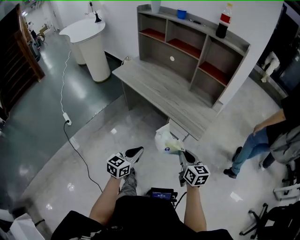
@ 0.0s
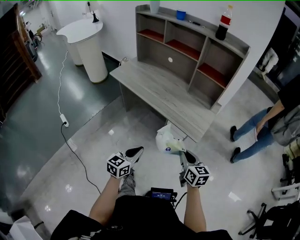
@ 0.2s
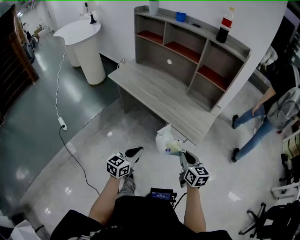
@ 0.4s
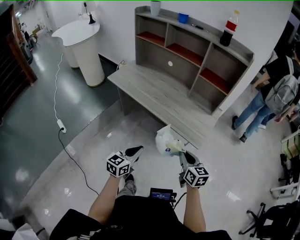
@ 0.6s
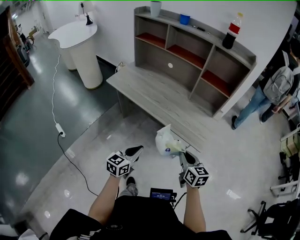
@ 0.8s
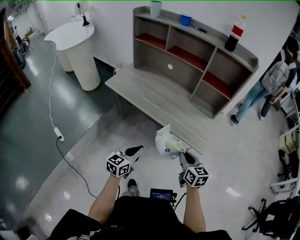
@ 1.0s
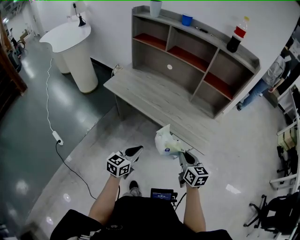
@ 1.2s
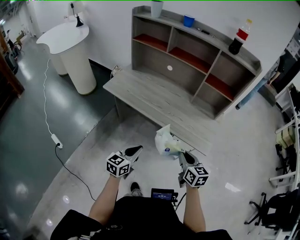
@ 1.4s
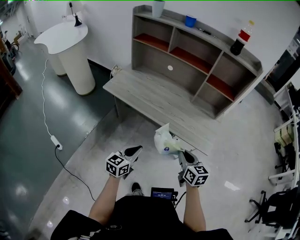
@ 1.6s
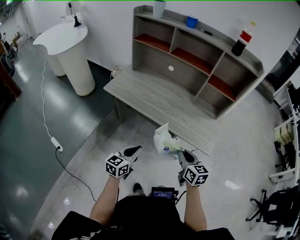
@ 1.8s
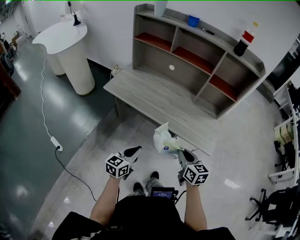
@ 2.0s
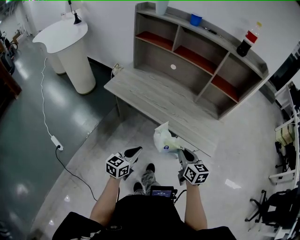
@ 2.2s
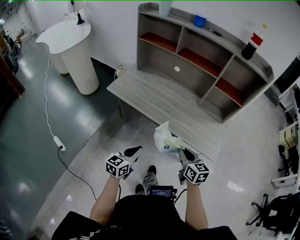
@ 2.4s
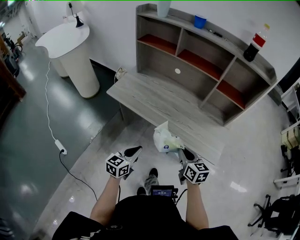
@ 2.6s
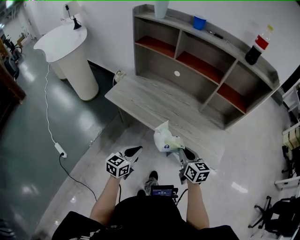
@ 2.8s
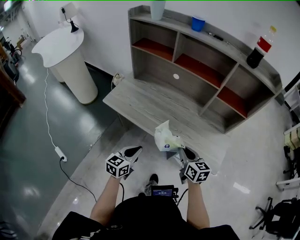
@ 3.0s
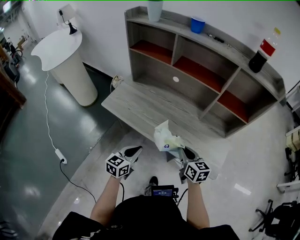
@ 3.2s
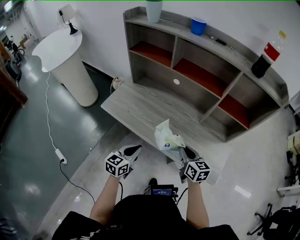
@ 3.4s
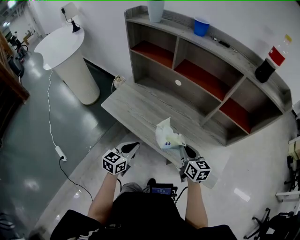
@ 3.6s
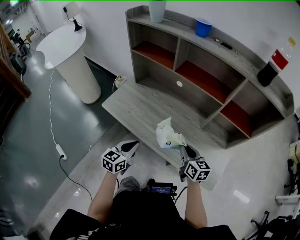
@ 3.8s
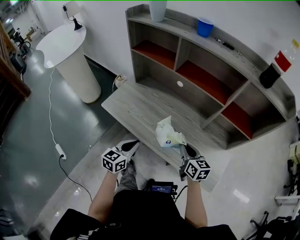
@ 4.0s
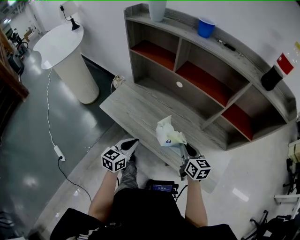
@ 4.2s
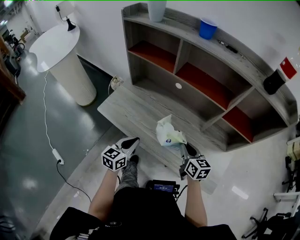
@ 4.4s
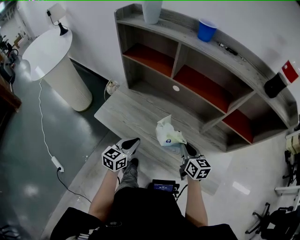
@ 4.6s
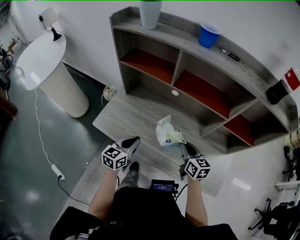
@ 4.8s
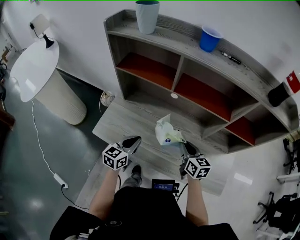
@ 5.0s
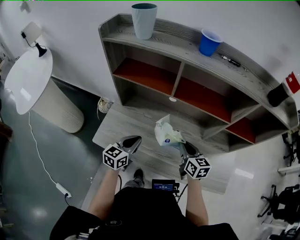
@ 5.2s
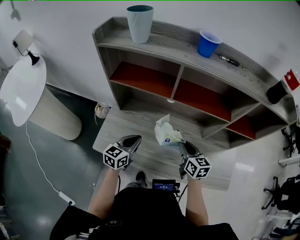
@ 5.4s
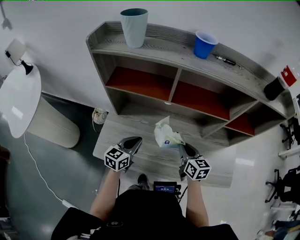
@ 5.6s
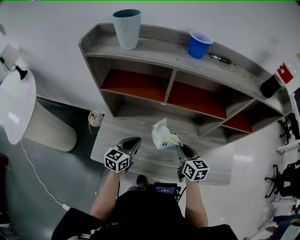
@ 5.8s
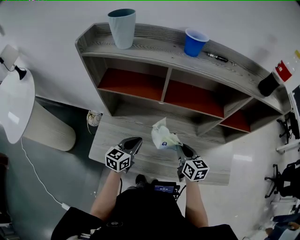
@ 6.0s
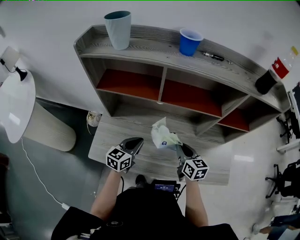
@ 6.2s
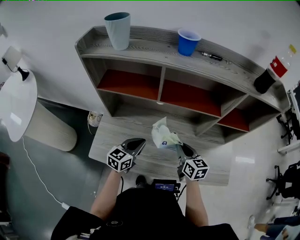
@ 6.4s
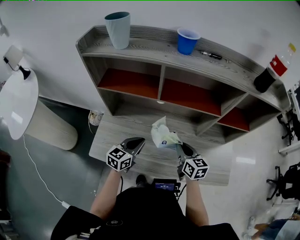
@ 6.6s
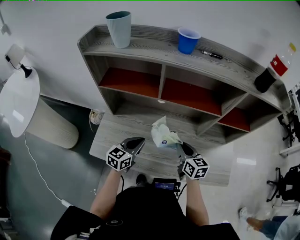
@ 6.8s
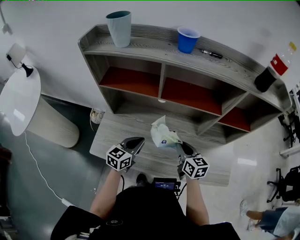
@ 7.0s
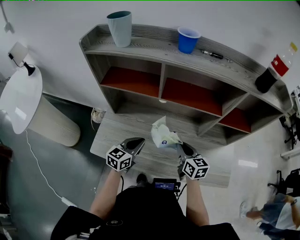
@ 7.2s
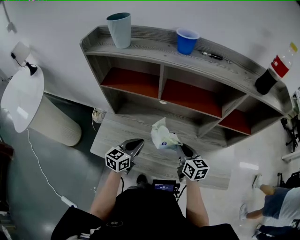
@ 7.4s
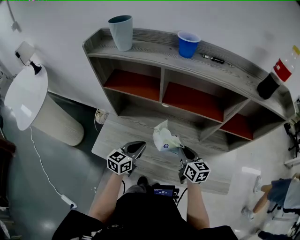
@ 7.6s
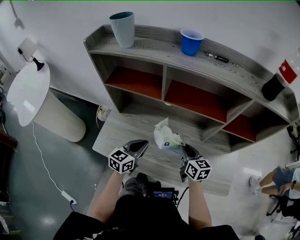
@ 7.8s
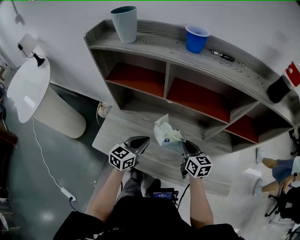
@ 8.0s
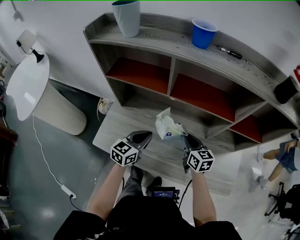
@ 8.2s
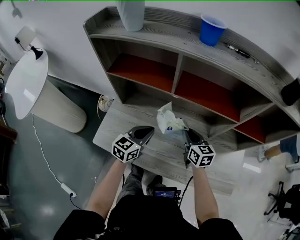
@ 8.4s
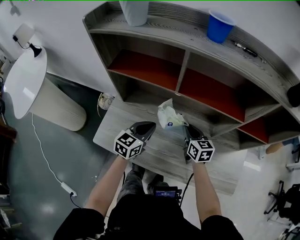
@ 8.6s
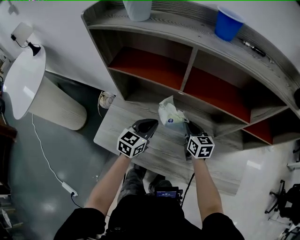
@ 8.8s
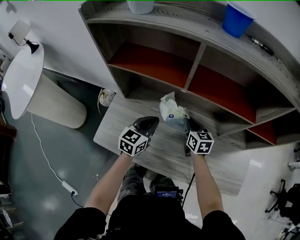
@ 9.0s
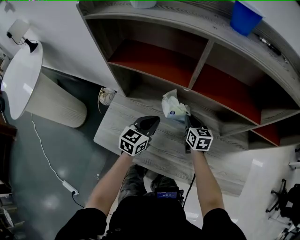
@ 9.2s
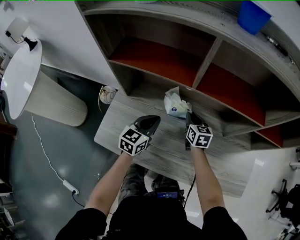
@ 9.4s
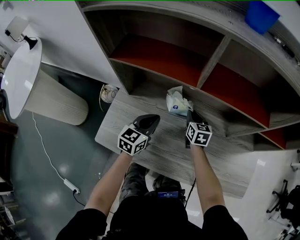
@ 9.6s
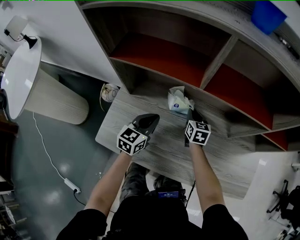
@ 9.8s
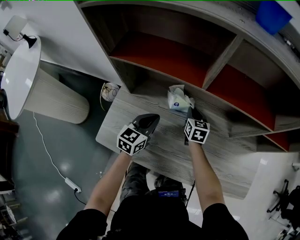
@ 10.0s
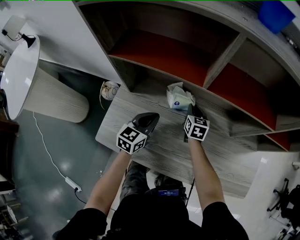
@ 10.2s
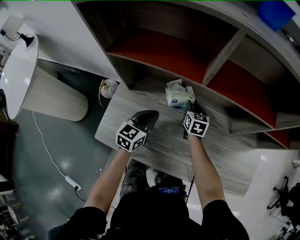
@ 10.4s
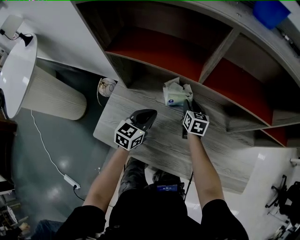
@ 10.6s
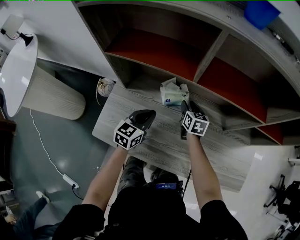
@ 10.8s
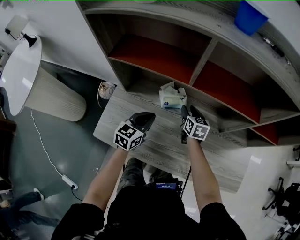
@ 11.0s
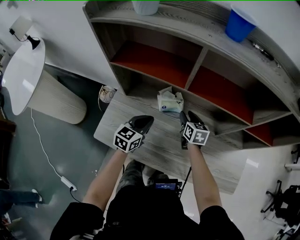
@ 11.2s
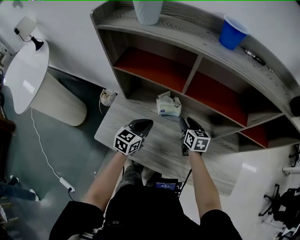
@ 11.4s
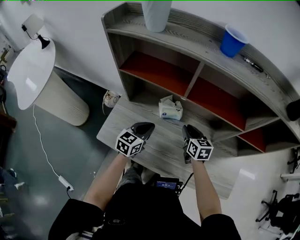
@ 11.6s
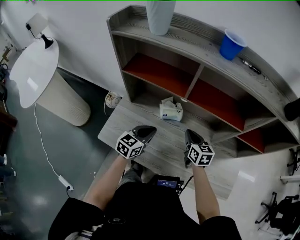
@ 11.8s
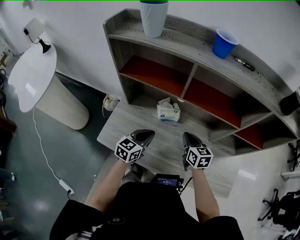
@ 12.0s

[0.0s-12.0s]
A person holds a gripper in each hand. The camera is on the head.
0.0s to 1.6s: The grippers both shift to the left and forward by some 20 cm.
1.6s to 3.0s: Both grippers move forward, some 15 cm.
3.0s to 4.4s: The grippers both shift forward by roughly 15 cm.
4.4s to 6.0s: The right gripper moves forward and to the left, approximately 10 cm, and rotates some 20 degrees. Meanwhile the left gripper travels forward by about 20 cm, and changes its angle by some 20 degrees.
6.0s to 7.6s: There are only small adjustments of the grippers.
7.6s to 9.0s: The left gripper goes approximately 10 cm forward and downward. Meanwhile the right gripper shifts approximately 15 cm forward, downward and to the left.
9.0s to 10.4s: The left gripper goes some 5 cm downward; the right gripper heads downward and forward, covering roughly 10 cm.
10.4s to 12.0s: The right gripper is displaced upward and backward by roughly 20 cm, and opens and closes again, while the left gripper goes approximately 10 cm upward and backward.

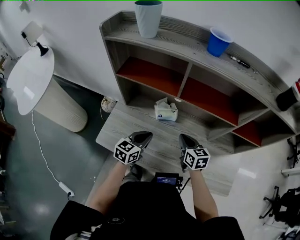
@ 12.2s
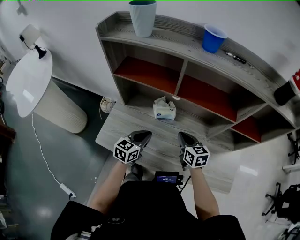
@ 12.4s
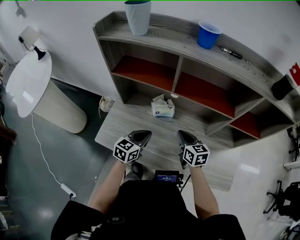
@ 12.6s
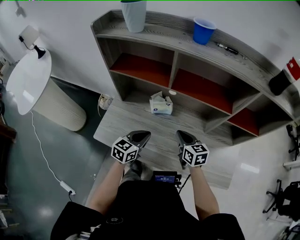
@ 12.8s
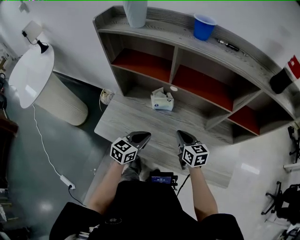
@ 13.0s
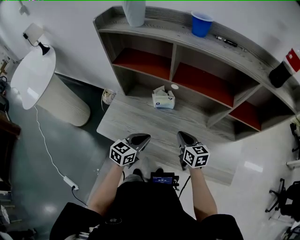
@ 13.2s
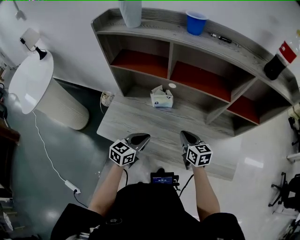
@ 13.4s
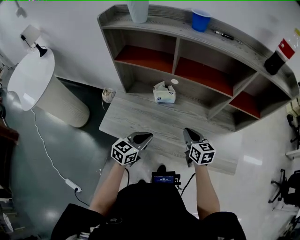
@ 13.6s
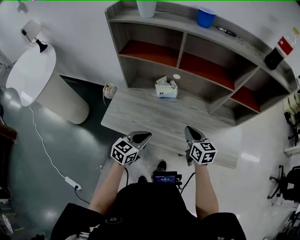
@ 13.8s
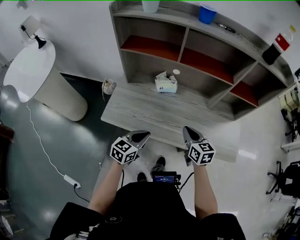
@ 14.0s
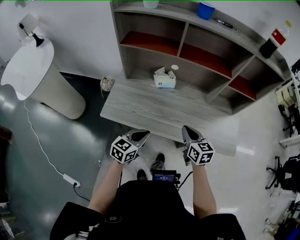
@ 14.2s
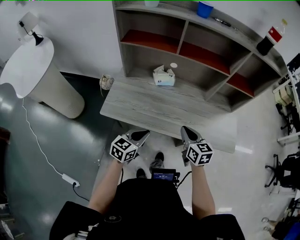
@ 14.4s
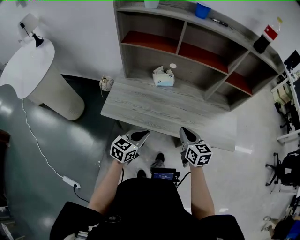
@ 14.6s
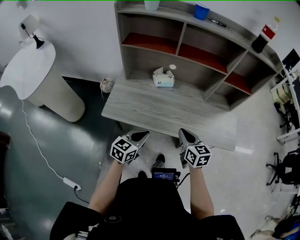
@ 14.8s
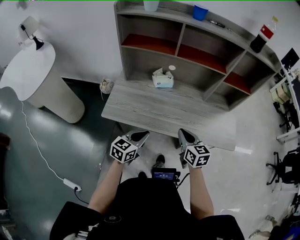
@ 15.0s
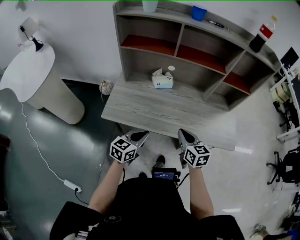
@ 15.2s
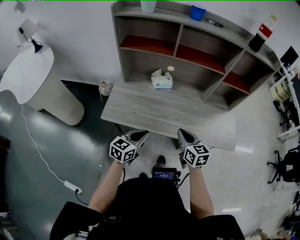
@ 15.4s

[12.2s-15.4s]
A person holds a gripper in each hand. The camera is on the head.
12.2s to 13.8s: Both grippers travel together backward, roughly 15 cm.
13.8s to 15.4s: The left gripper goes roughly 10 cm backward. The right gripper travels backward by roughly 10 cm.

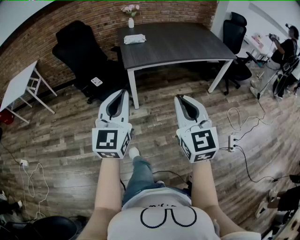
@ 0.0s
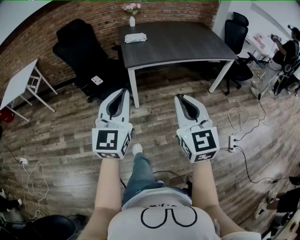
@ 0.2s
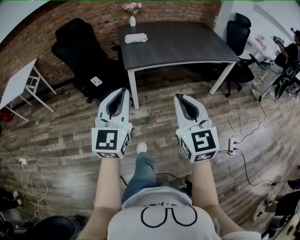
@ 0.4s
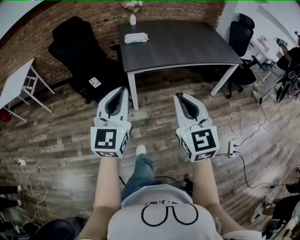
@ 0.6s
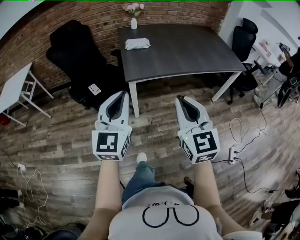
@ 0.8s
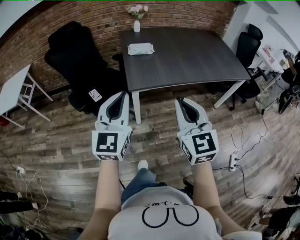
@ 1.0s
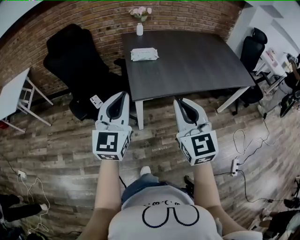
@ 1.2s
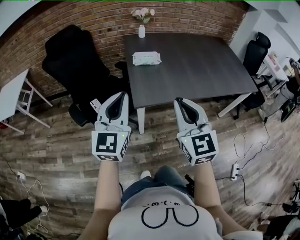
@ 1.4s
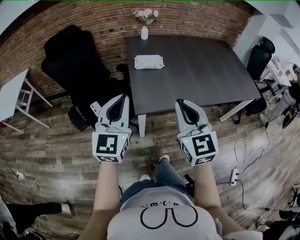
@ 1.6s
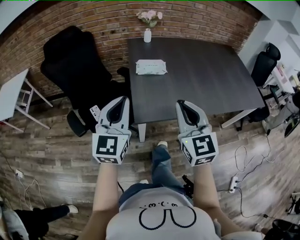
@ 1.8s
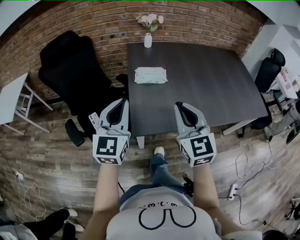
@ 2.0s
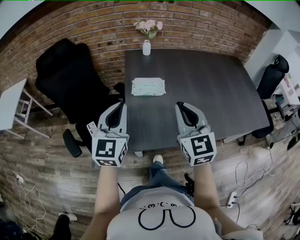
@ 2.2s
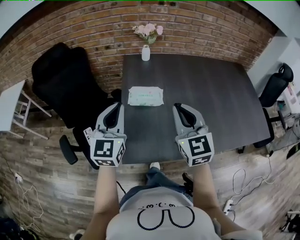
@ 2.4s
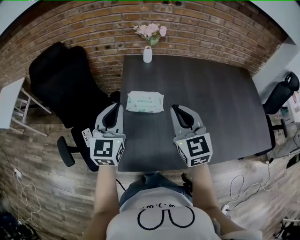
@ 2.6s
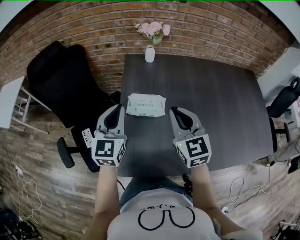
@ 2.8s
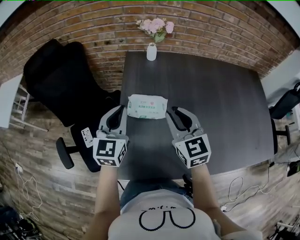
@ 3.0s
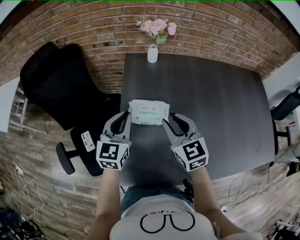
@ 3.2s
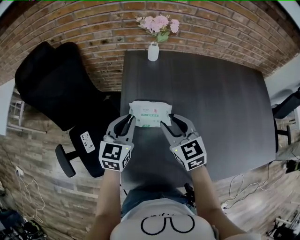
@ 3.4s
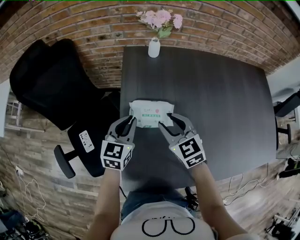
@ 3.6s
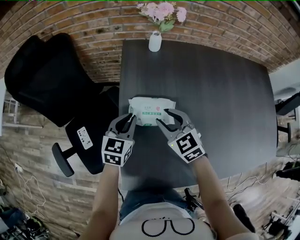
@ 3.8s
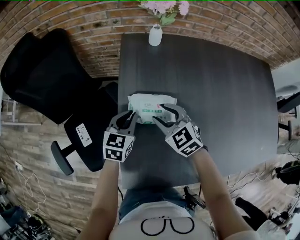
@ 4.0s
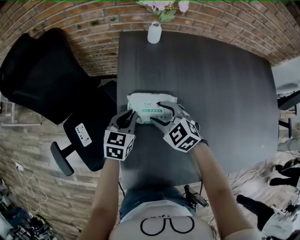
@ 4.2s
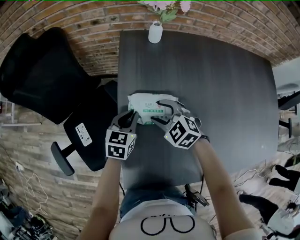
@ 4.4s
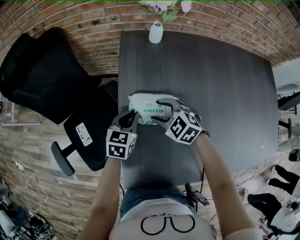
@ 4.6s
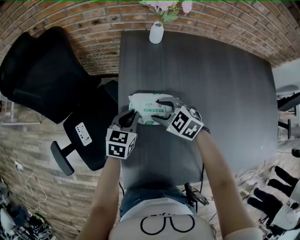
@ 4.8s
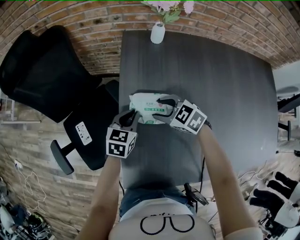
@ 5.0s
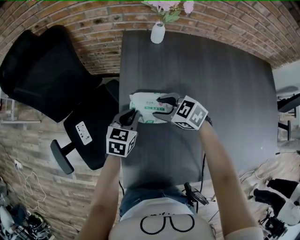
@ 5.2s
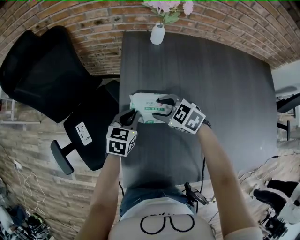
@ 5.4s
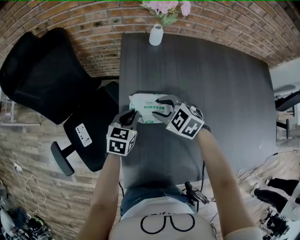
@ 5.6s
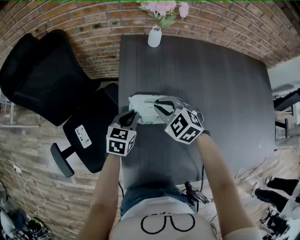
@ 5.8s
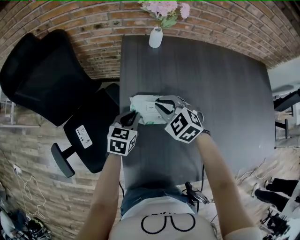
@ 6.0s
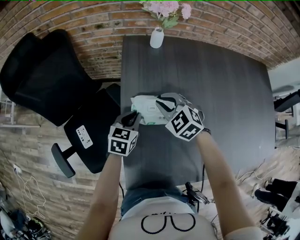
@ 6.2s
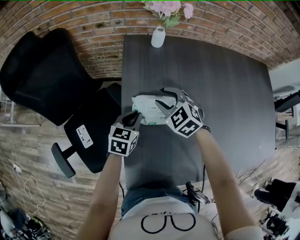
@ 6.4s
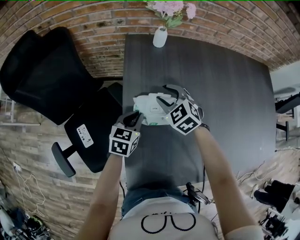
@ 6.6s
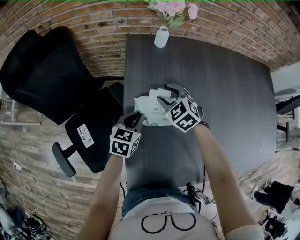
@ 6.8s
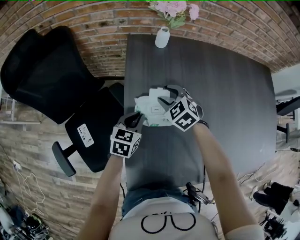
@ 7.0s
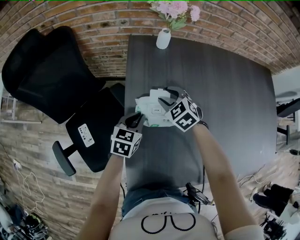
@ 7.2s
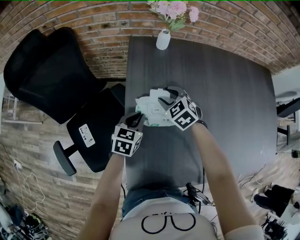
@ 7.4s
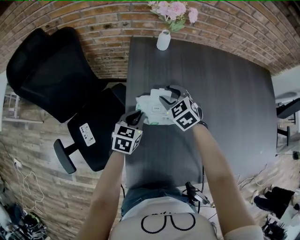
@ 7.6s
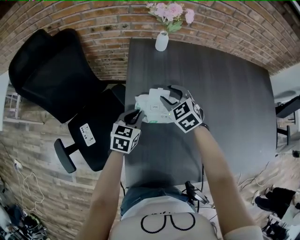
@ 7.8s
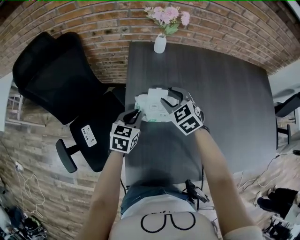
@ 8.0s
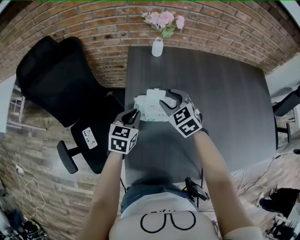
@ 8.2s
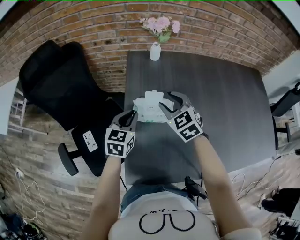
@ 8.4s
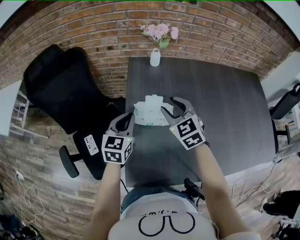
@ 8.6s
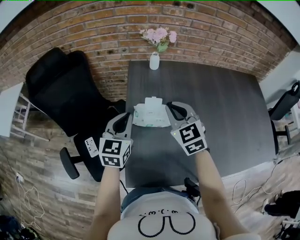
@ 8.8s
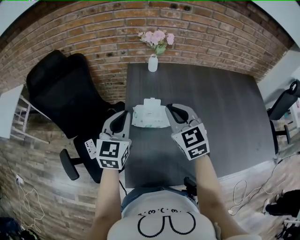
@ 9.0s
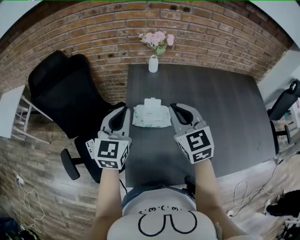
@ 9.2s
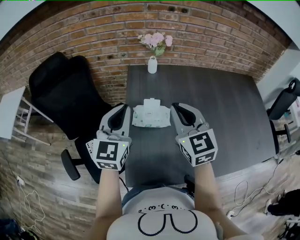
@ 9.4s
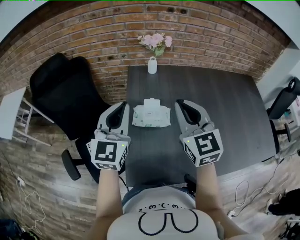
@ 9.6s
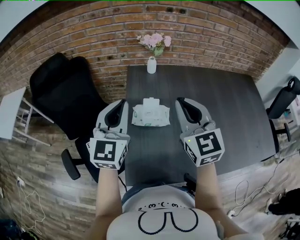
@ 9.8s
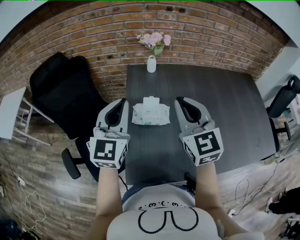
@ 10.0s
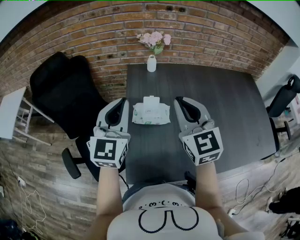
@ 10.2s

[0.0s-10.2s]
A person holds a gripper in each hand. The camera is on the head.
0.0s to 1.4s: The pair of grippers is taken forward, approximately 40 cm.
1.4s to 3.0s: The two grippers travel together, forward, roughly 50 cm. The right gripper turns by roughly 20 degrees.
3.0s to 4.4s: The right gripper heads downward and forward, covering some 25 cm, points its fingers some 30 degrees further downward, and opens. Meanwhile the left gripper is displaced downward by some 20 cm, and changes its angle by about 30 degrees.
4.4s to 5.8s: The right gripper closes its fingers.
5.8s to 7.2s: The right gripper heads forward, covering roughly 5 cm, and opens up.
7.2s to 8.8s: The left gripper goes some 20 cm upward, and turns by roughly 30 degrees; the right gripper travels upward and backward by about 25 cm, rotates some 30 degrees, and closes.
8.8s to 10.2s: The right gripper travels upward and backward by about 15 cm, while the left gripper shifts roughly 15 cm upward, and rotates about 20 degrees.
